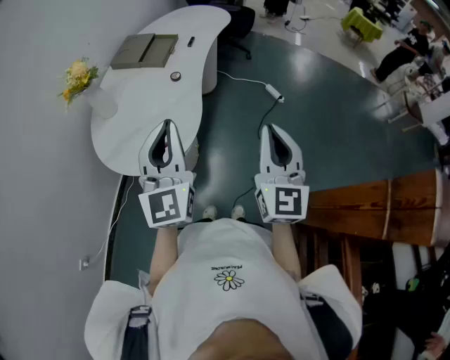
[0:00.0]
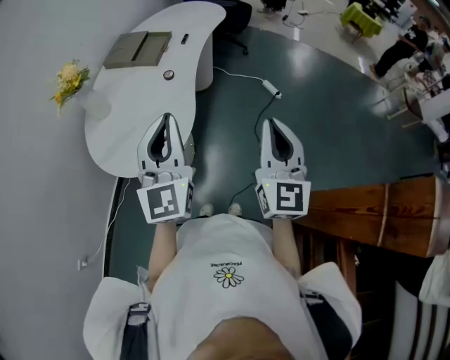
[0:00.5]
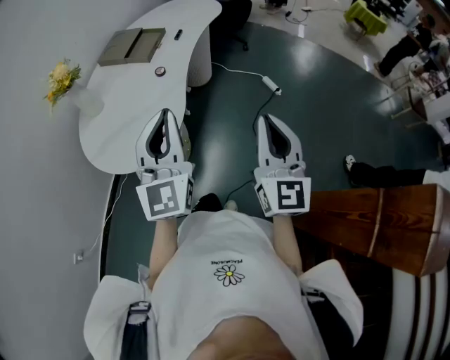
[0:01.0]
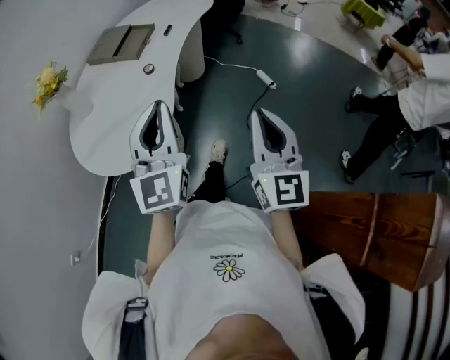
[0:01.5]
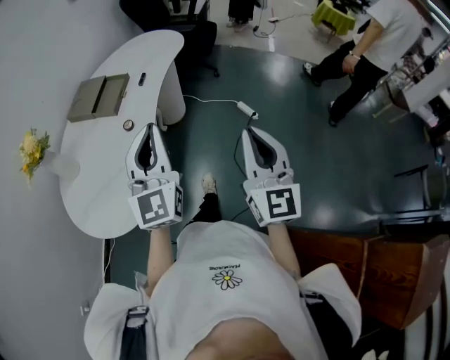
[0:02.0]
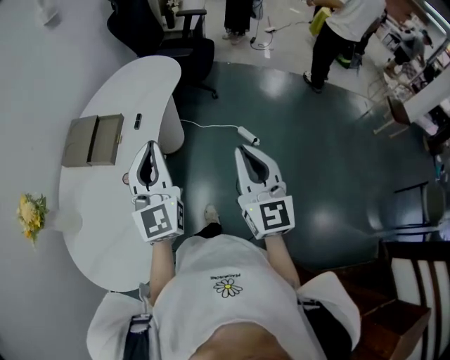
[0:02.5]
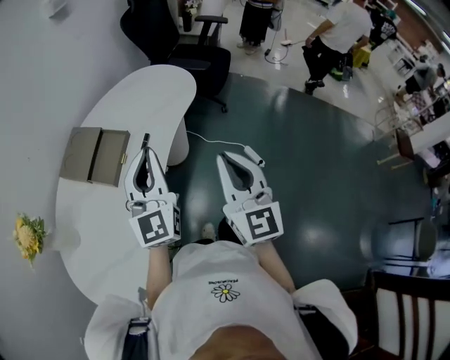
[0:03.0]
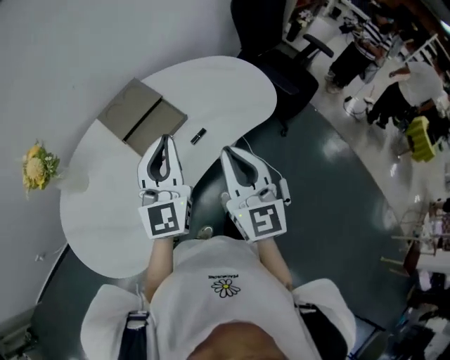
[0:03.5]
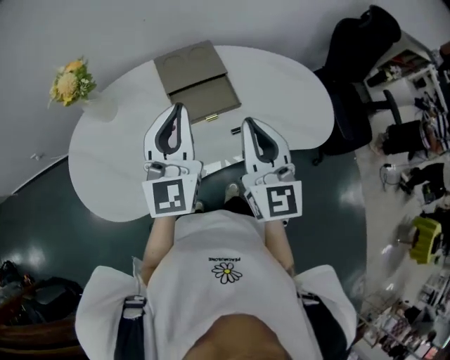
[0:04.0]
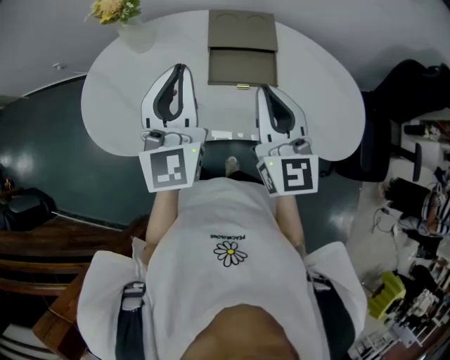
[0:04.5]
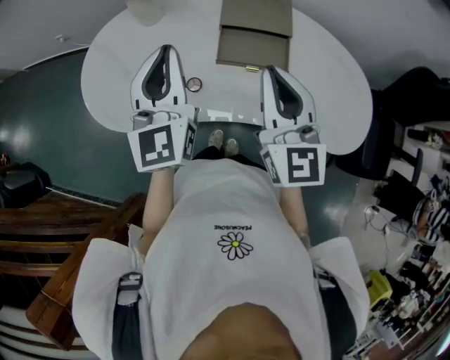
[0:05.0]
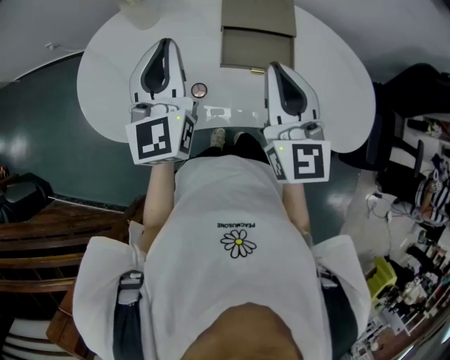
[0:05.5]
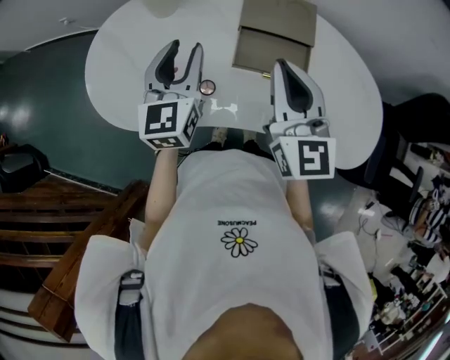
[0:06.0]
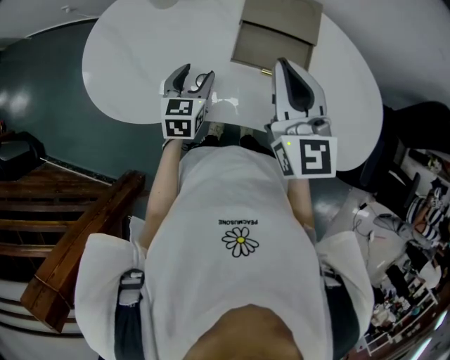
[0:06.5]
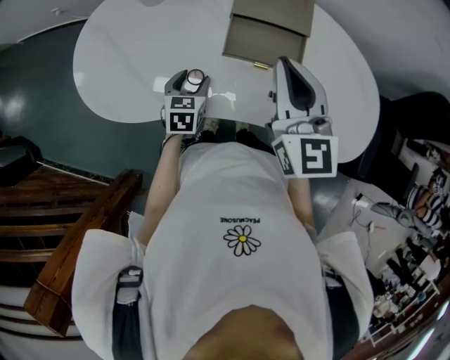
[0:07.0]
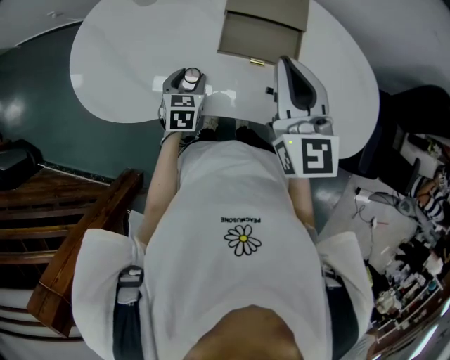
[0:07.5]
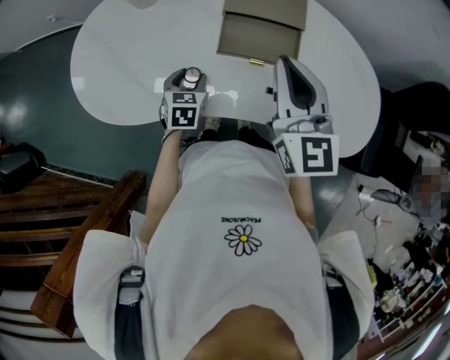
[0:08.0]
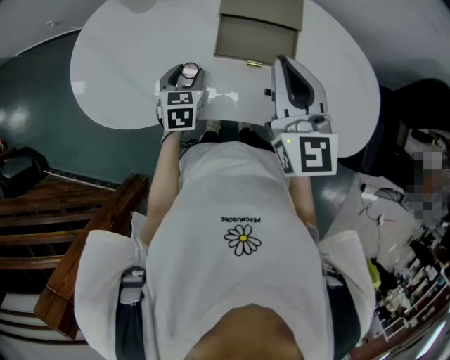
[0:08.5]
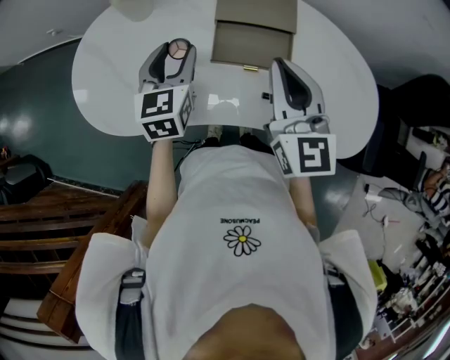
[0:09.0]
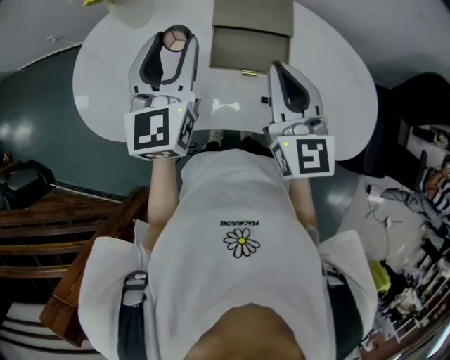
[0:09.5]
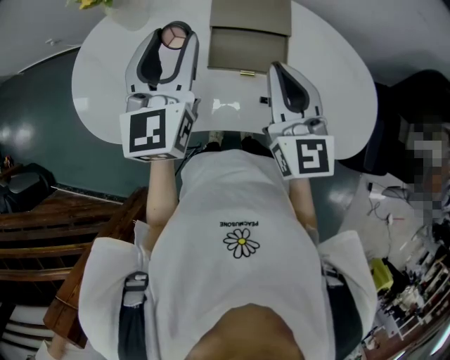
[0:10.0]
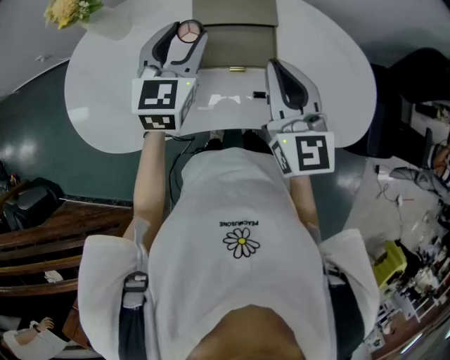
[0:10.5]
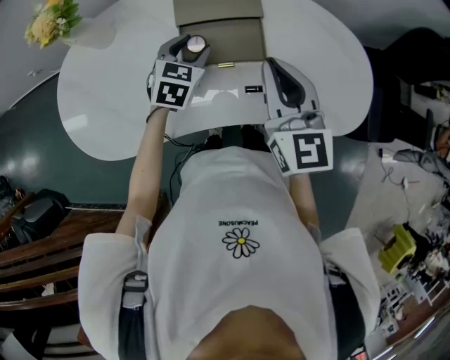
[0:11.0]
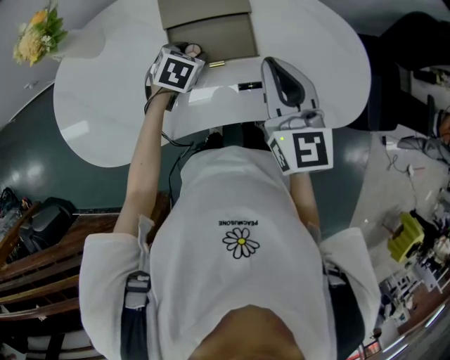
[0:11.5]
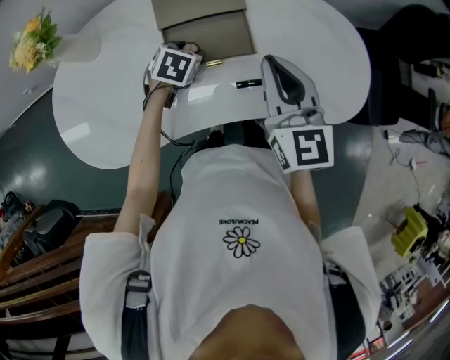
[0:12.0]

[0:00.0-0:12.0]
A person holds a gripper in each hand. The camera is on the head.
0:00.0 to 0:02.0: The grippers both shift forward and to the right by about 20 cm.
0:02.0 to 0:04.0: The left gripper changes place by about 40 cm, and rotates about 60 degrees. Meanwhile the right gripper ends up roughly 60 cm from where it was, and swivels roughly 70 degrees.
0:04.0 to 0:06.0: The right gripper moves about 15 cm, and swivels some 30 degrees; the left gripper changes place by some 20 cm, rotates roughly 30 degrees, and opens up.
0:06.0 to 0:08.0: The left gripper goes about 25 cm downward, and points its fingers roughly 40 degrees further downward. Meanwhile the right gripper moves roughly 5 cm.
0:08.0 to 0:10.0: The left gripper shifts about 30 cm upward, and tilts its fingers some 40 degrees upward.
0:10.0 to 0:12.0: The left gripper goes roughly 30 cm downward, and angles its fingers downward, by approximately 60 degrees. Meanwhile the right gripper is displaced to the right by approximately 10 cm.

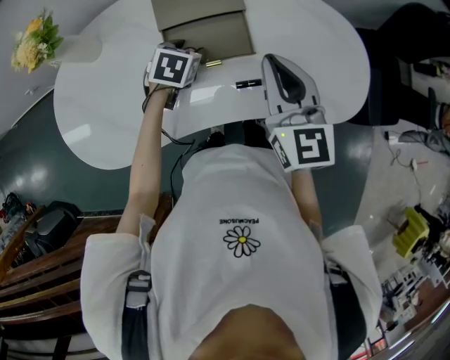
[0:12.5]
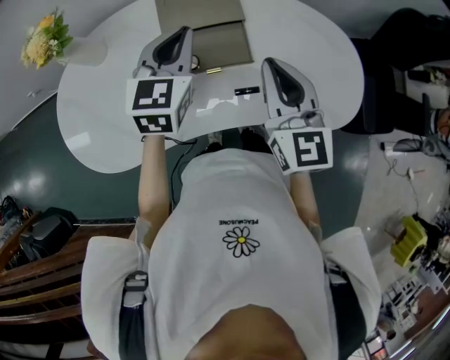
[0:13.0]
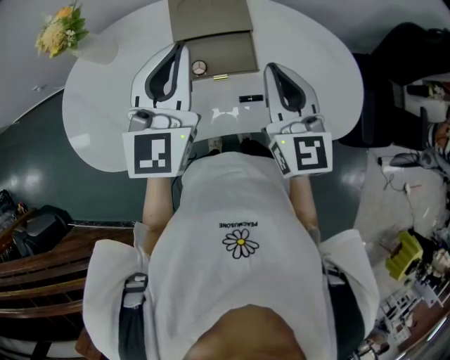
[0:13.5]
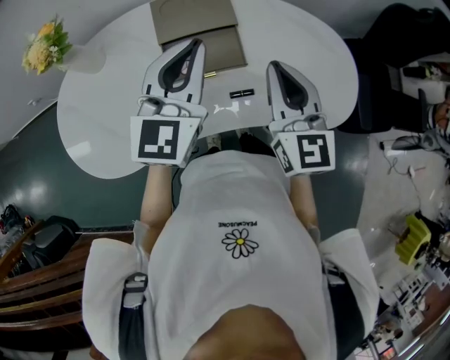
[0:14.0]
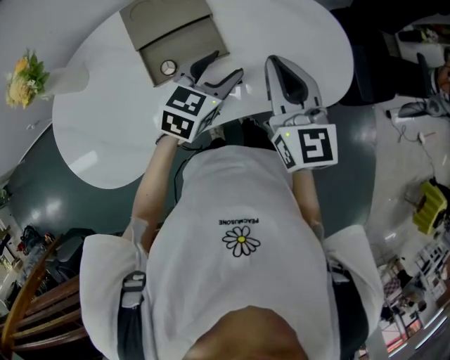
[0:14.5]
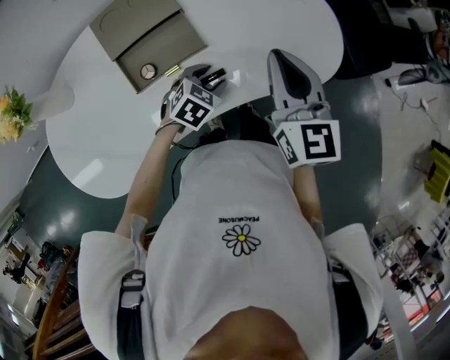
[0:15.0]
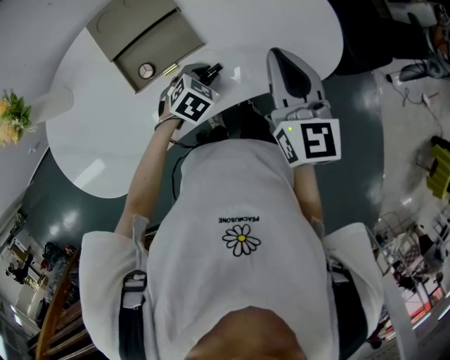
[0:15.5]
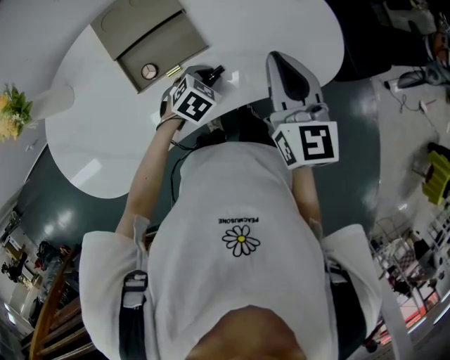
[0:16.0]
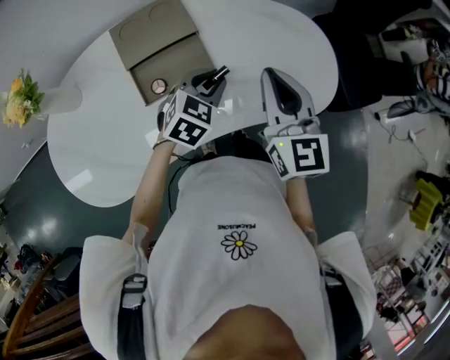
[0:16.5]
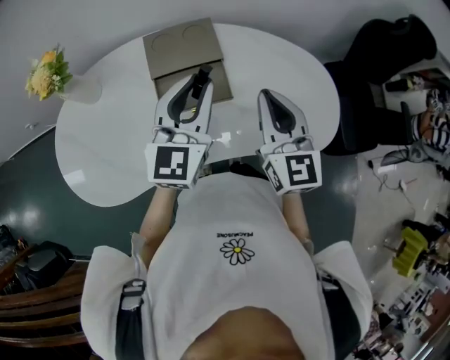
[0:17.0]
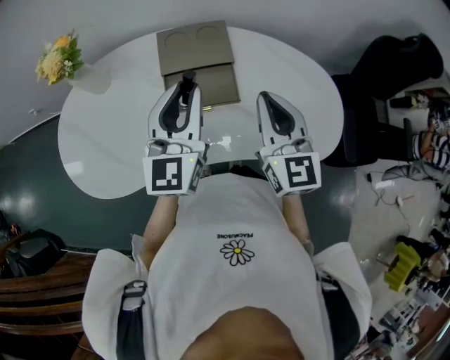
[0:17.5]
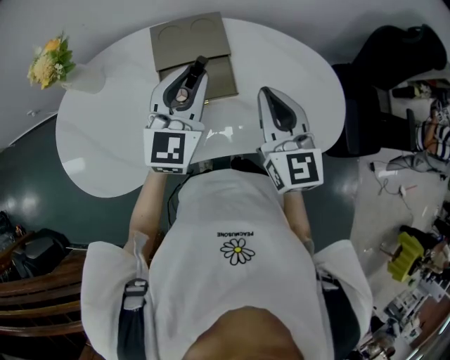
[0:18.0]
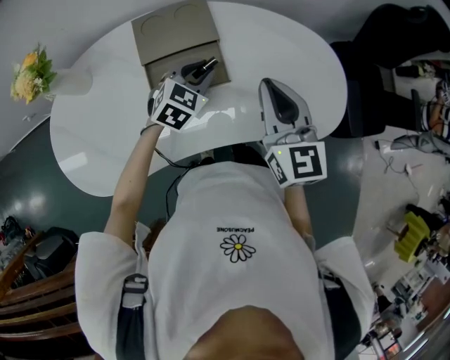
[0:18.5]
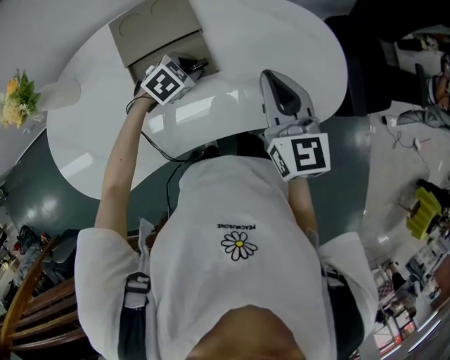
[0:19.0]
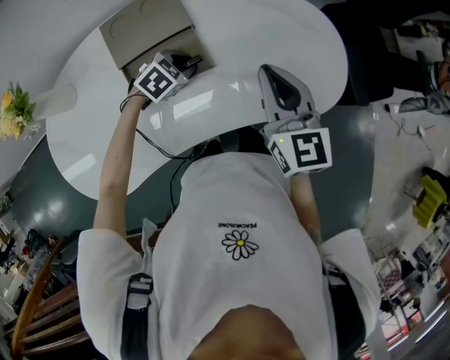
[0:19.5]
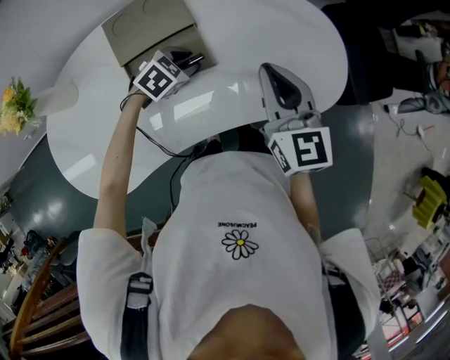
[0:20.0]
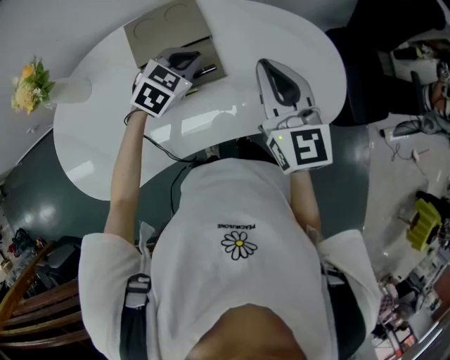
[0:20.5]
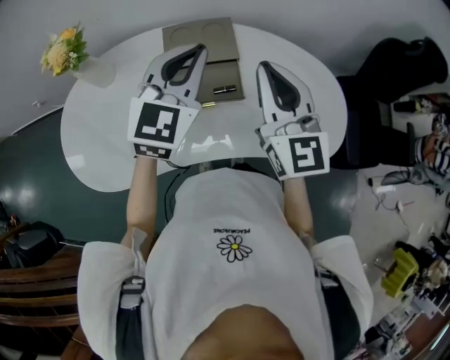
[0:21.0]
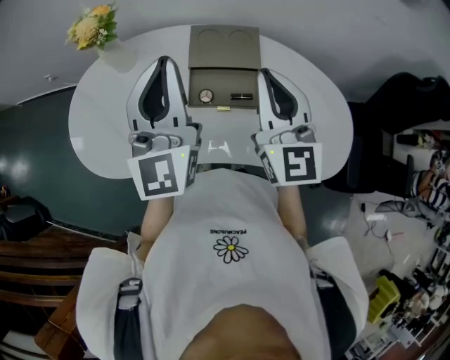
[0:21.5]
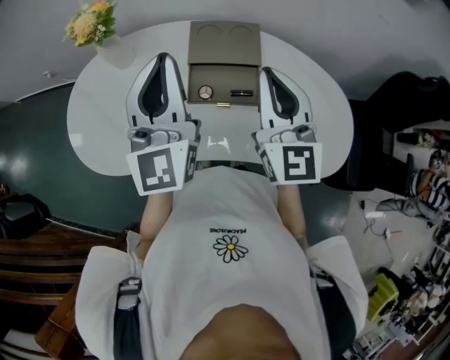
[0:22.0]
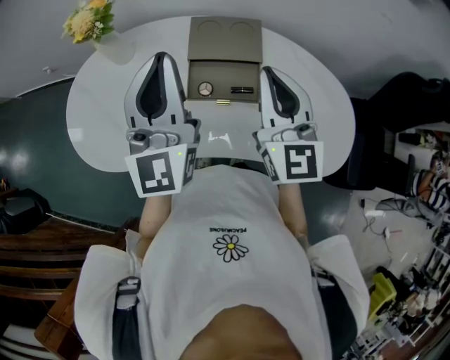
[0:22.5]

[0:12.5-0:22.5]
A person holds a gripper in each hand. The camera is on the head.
0:12.5 to 0:14.5: The right gripper shifts by about 5 cm; the left gripper moves about 20 cm, changes its angle by roughly 30 degrees, and closes and opens again.
0:14.5 to 0:16.5: The left gripper reaches about 15 cm downward, then returns, and closes.
0:16.5 to 0:18.5: The left gripper travels upward and back again, approximately 20 cm each way.
0:18.5 to 0:20.5: The left gripper reaches approximately 10 cm downward, then returns.
0:20.5 to 0:22.5: The right gripper shifts by approximately 15 cm. The left gripper is displaced upward by about 25 cm, and angles its fingers upward, by some 60 degrees.

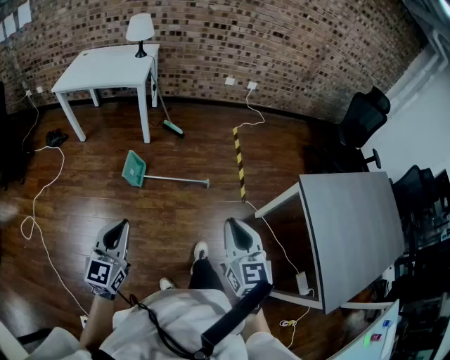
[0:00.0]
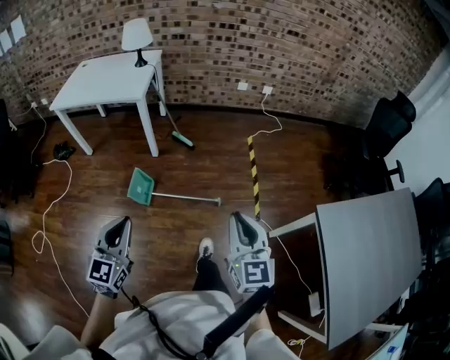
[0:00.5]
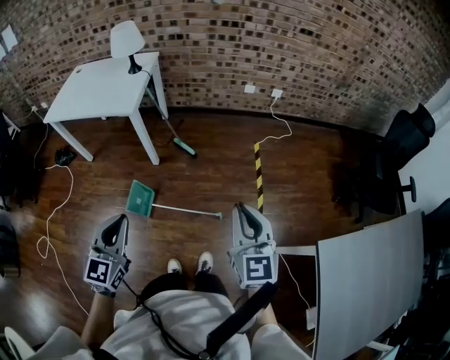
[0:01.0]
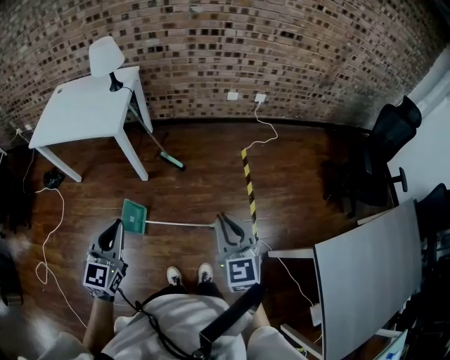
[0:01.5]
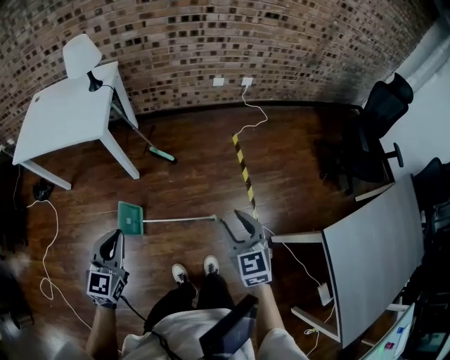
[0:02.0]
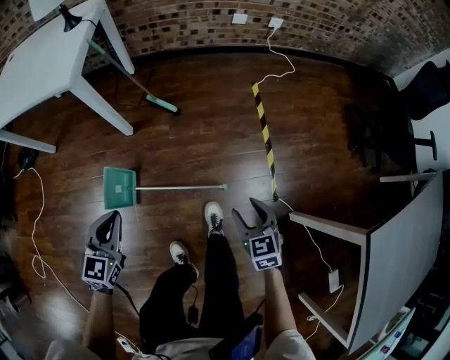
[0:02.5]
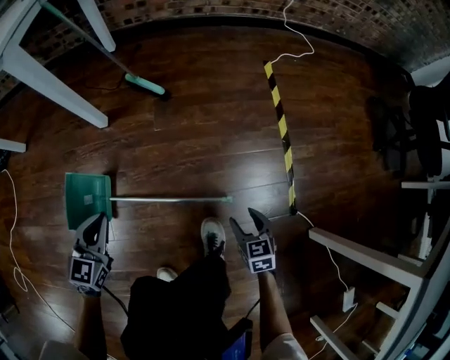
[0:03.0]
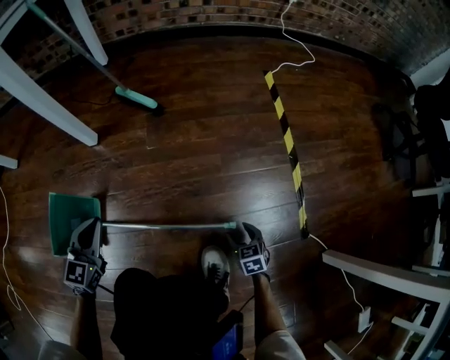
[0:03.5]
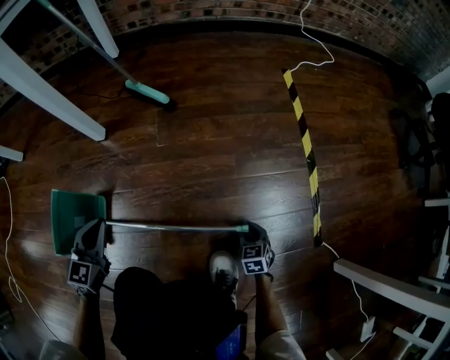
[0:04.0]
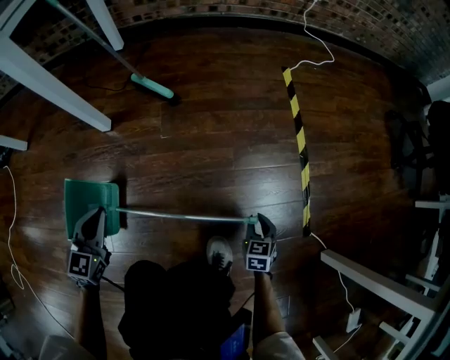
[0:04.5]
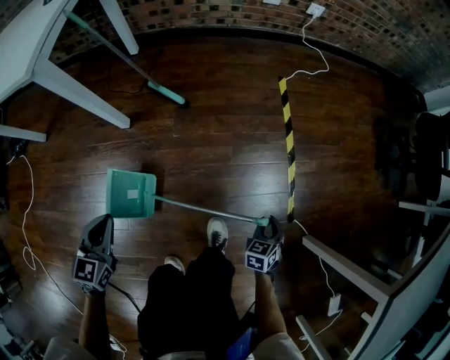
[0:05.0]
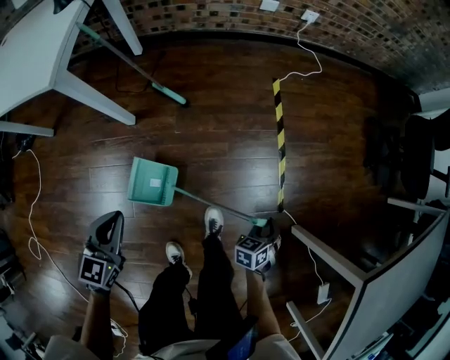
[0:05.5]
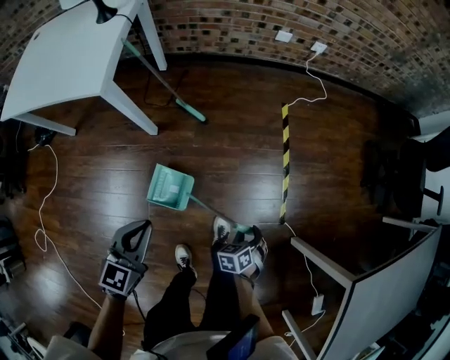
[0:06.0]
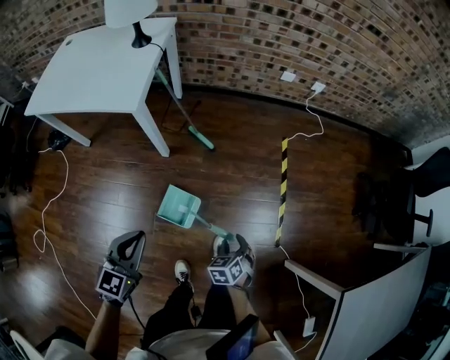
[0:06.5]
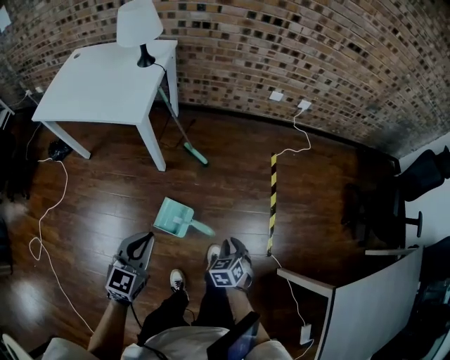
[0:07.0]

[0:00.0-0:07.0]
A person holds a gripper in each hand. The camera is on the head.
0:00.0 to 0:02.0: The two grippers travel together, forward, approximately 40 cm. The right gripper opens its fingers.
0:02.0 to 0:03.5: Both grippers move downward, approximately 80 cm. The right gripper tilts its fingers some 30 degrees downward.
0:03.5 to 0:05.0: The grippers both shift upward by about 25 cm. The right gripper swivels about 30 degrees, and closes its fingers.
0:05.0 to 0:07.0: The two grippers go about 35 cm upward. The right gripper changes its angle by approximately 20 degrees, and opens, then closes once more.
